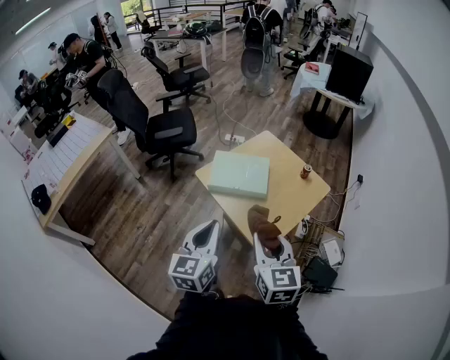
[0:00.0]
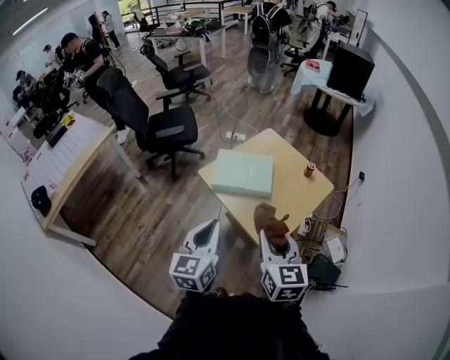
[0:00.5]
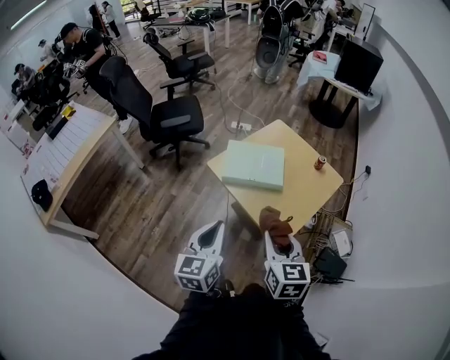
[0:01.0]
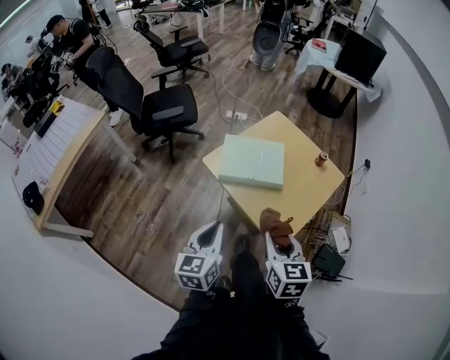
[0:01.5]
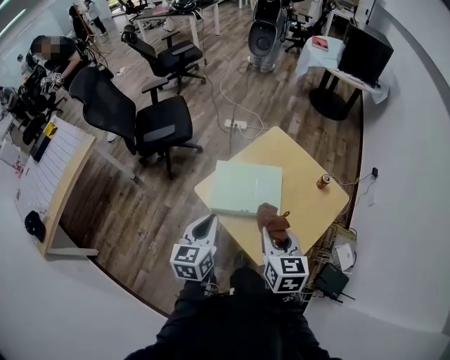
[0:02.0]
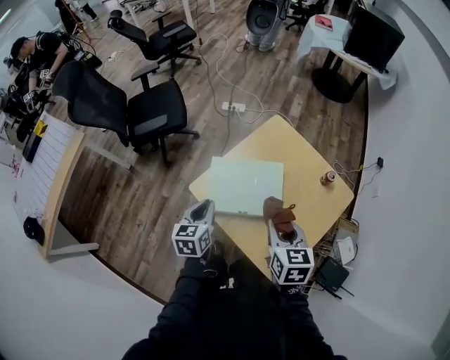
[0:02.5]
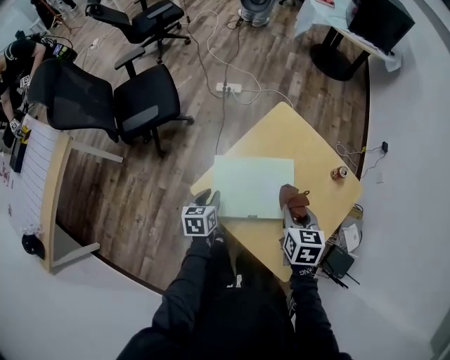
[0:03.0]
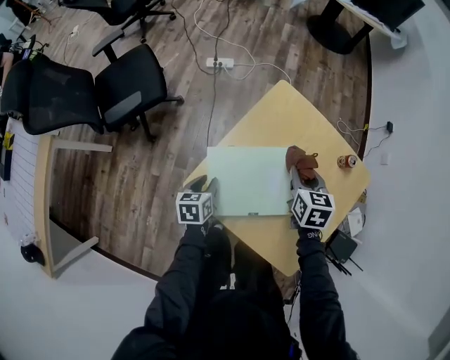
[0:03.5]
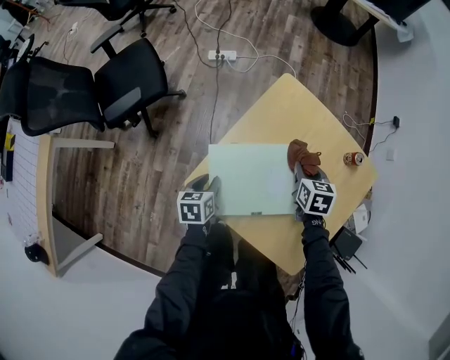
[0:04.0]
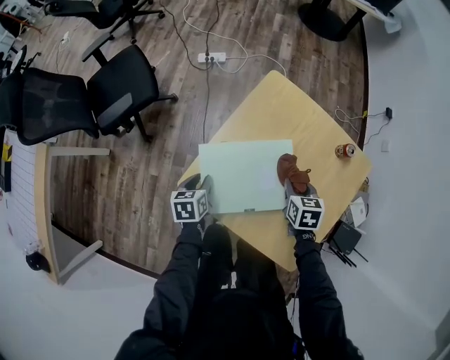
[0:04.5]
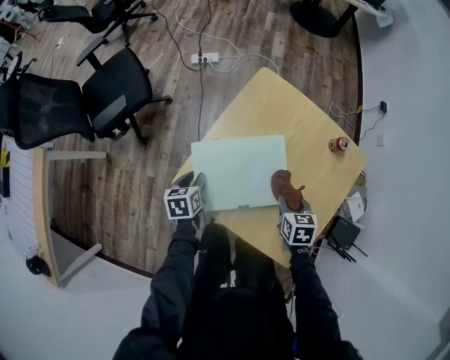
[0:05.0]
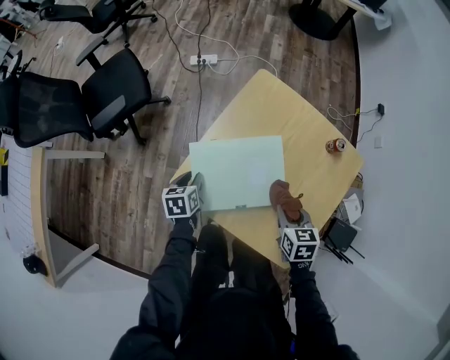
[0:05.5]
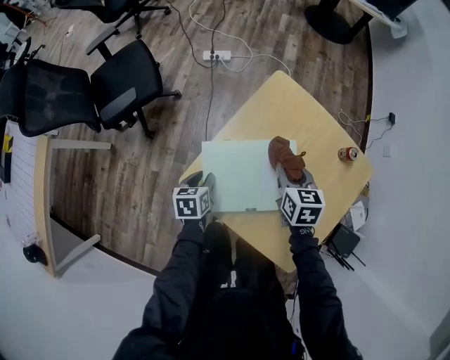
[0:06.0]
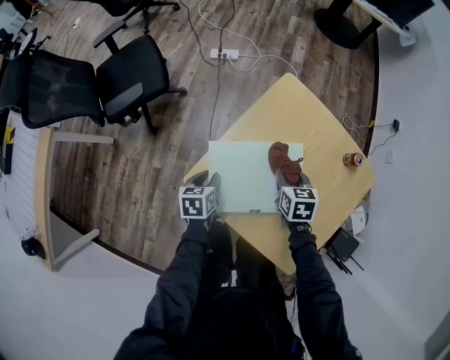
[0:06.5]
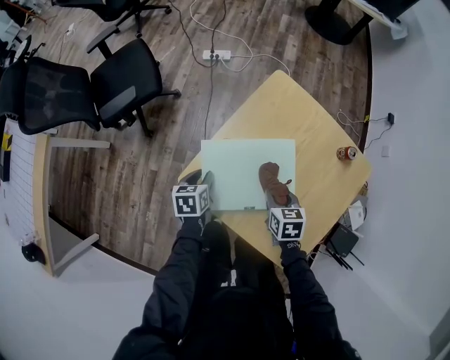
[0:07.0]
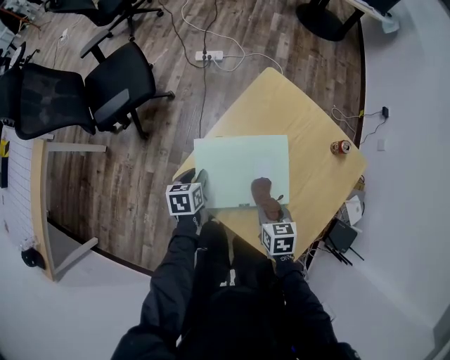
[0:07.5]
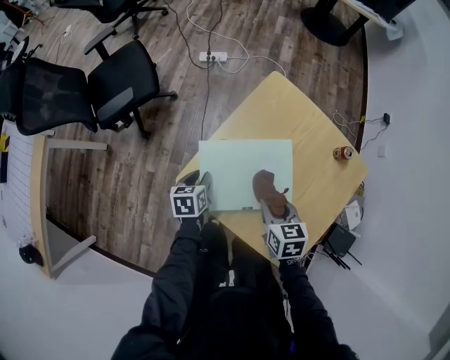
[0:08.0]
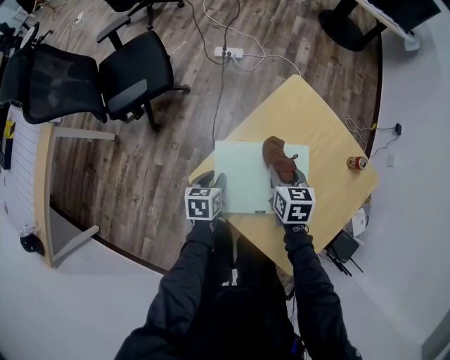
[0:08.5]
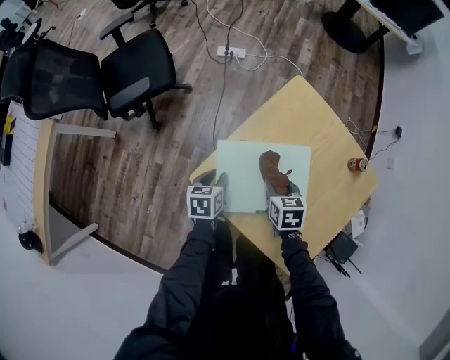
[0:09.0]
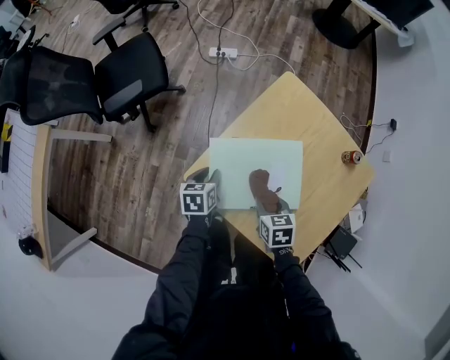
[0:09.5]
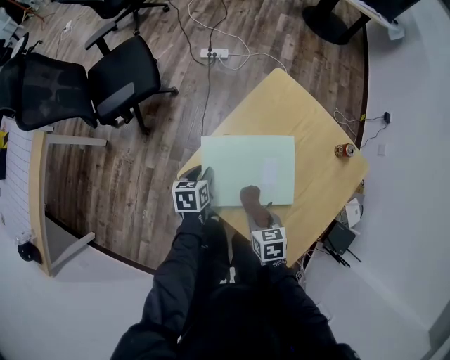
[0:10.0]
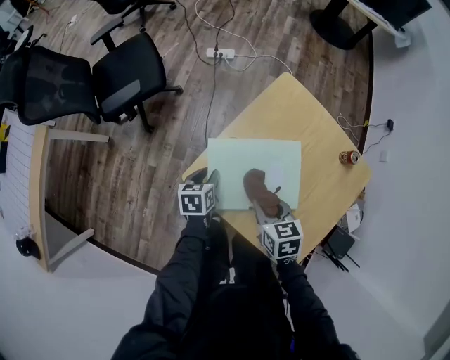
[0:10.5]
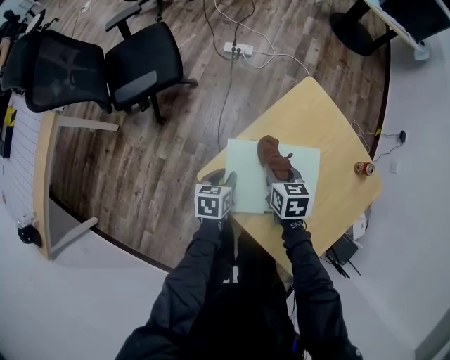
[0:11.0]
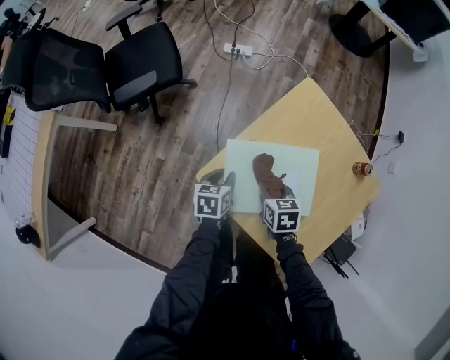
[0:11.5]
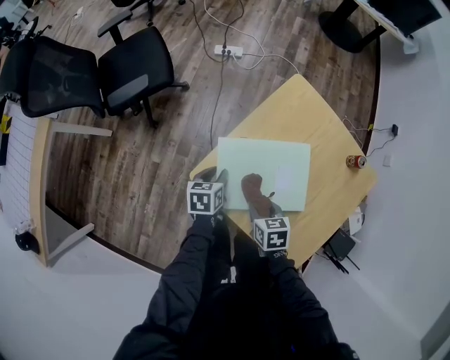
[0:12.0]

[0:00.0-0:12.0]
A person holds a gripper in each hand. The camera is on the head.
0:00.0 to 0:02.0: The grippers both shift forward and downward by some 25 cm.
0:02.0 to 0:04.0: The right gripper shifts roughly 40 cm forward and downward, and rotates some 30 degrees; the left gripper goes some 40 cm downward and forward, tips its fingers downward by about 30 degrees, and opens its fingers.
0:04.0 to 0:06.0: The right gripper is displaced upward by approximately 5 cm, and moves approximately 15 cm backward and comes back.
0:06.0 to 0:08.0: The right gripper is displaced backward by about 10 cm.
0:08.0 to 0:10.0: The right gripper is displaced backward and downward by about 10 cm.
0:10.0 to 0:12.0: The right gripper goes forward and returns, approximately 20 cm each way.

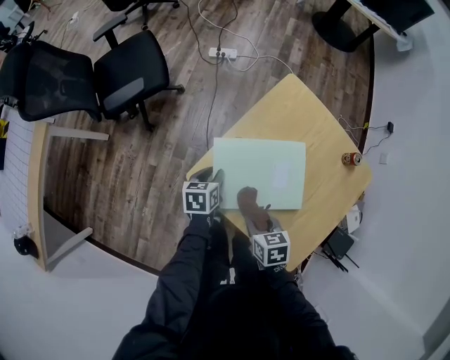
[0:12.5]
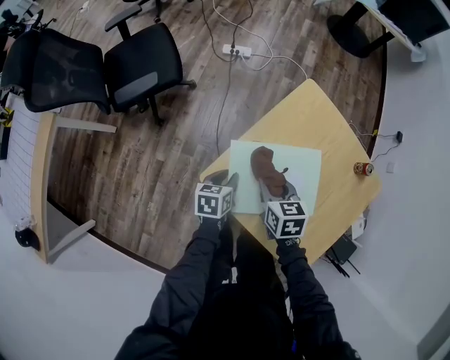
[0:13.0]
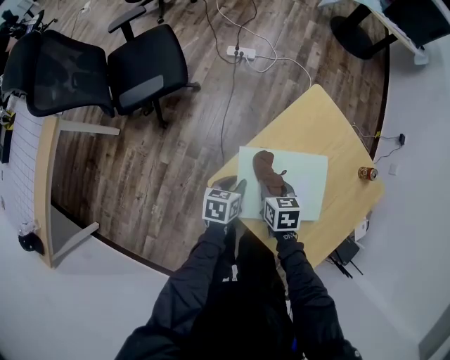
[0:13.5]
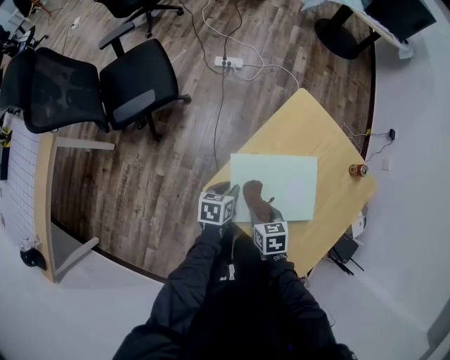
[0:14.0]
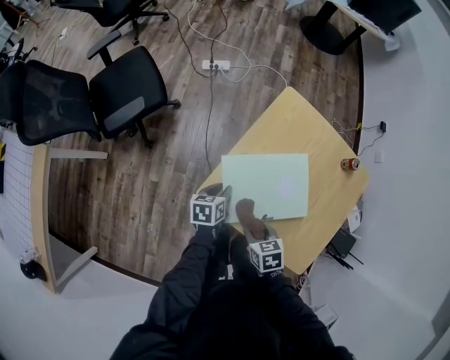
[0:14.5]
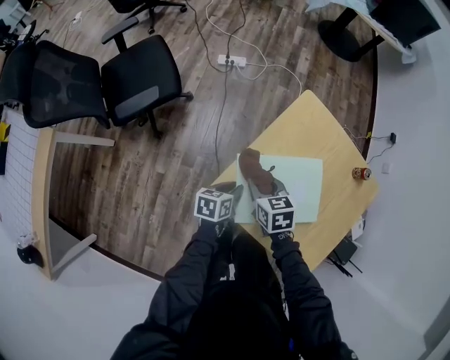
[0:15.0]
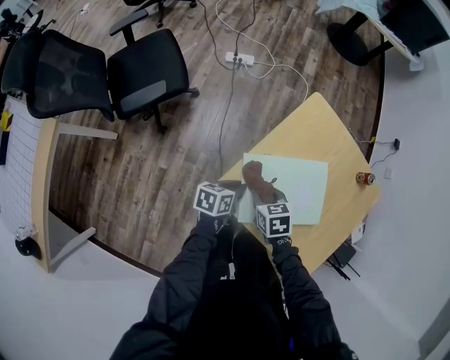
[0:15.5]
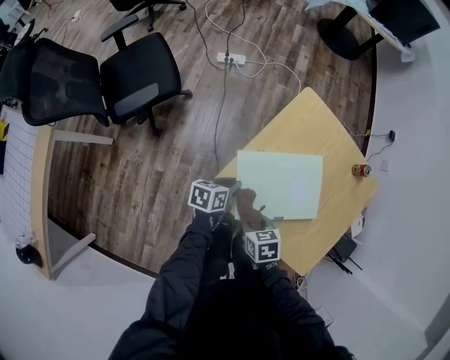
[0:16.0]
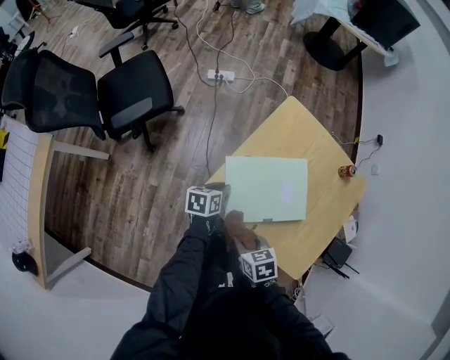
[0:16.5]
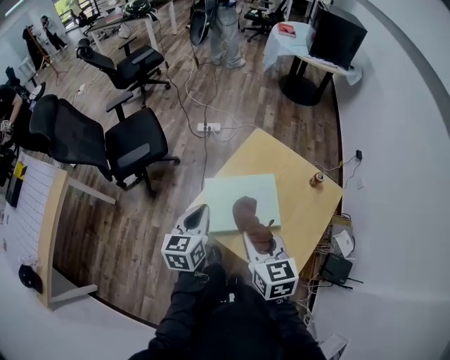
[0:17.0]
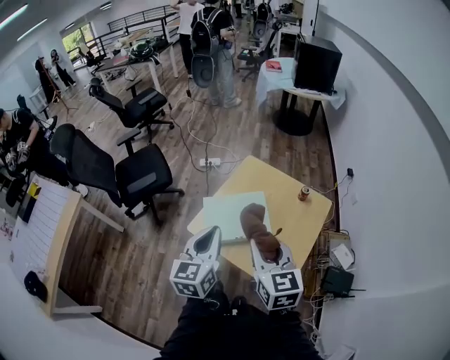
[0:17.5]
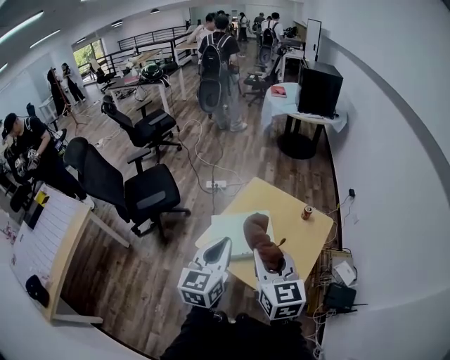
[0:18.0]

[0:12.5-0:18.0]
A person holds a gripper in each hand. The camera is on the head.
0:12.5 to 0:14.5: The right gripper travels forward and back again, roughly 15 cm each way.
0:14.5 to 0:16.0: The right gripper travels to the left by approximately 5 cm, and travels forward and back again, roughly 15 cm each way.
0:16.0 to 0:18.0: The right gripper goes some 40 cm upward, and tilts its fingers roughly 50 degrees upward. Meanwhile the left gripper is displaced upward and backward by some 50 cm, and angles its fingers upward, by approximately 30 degrees.

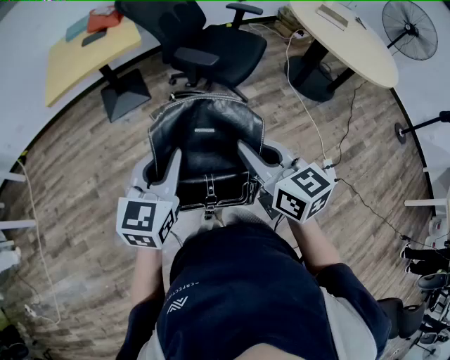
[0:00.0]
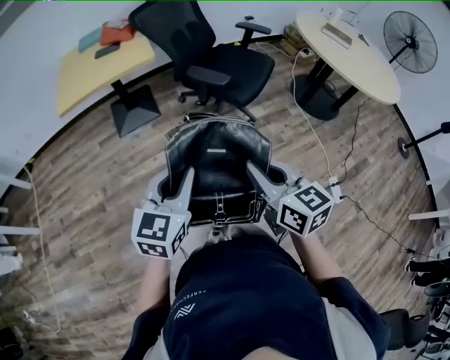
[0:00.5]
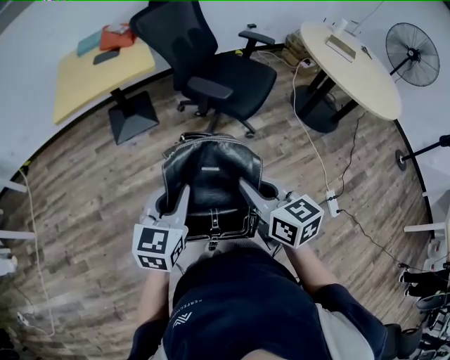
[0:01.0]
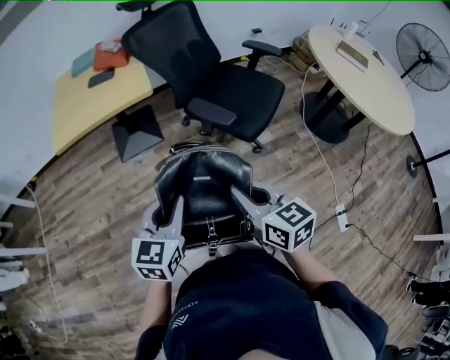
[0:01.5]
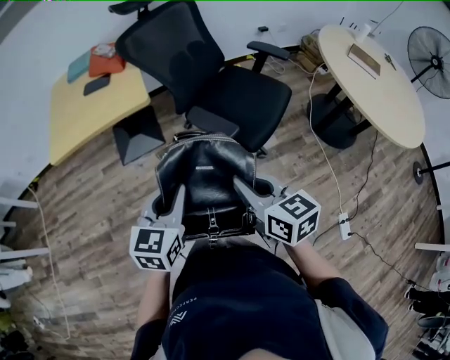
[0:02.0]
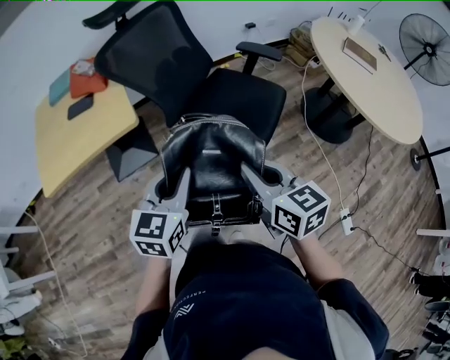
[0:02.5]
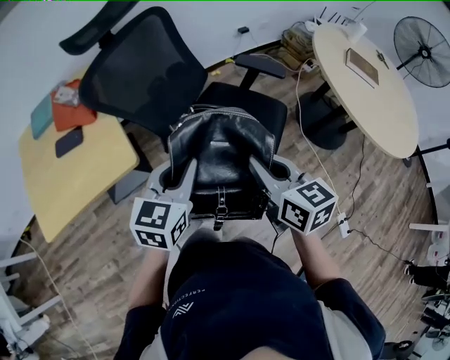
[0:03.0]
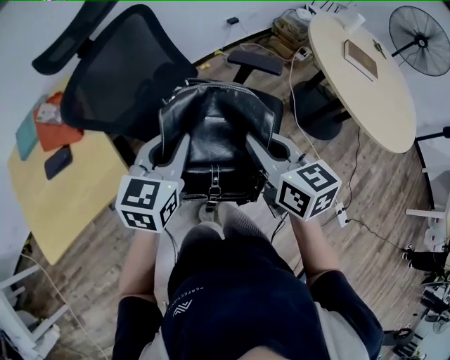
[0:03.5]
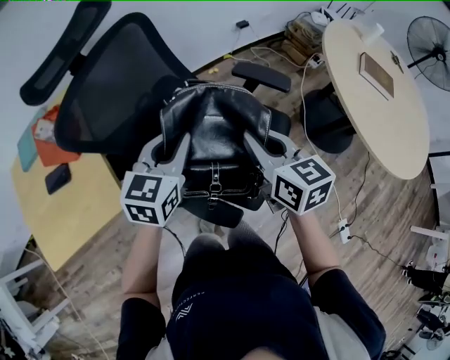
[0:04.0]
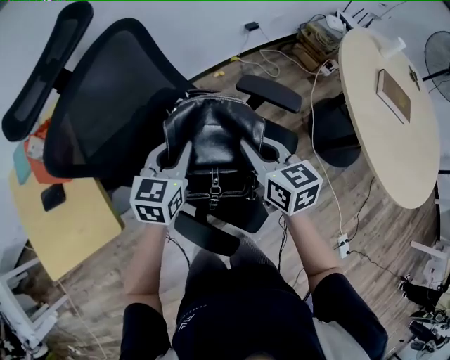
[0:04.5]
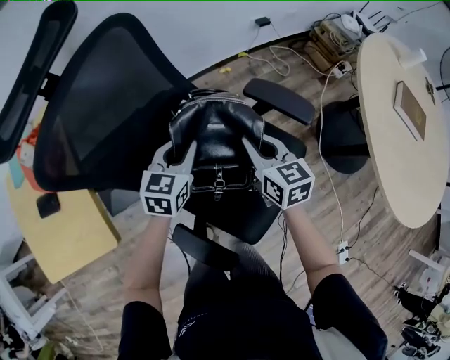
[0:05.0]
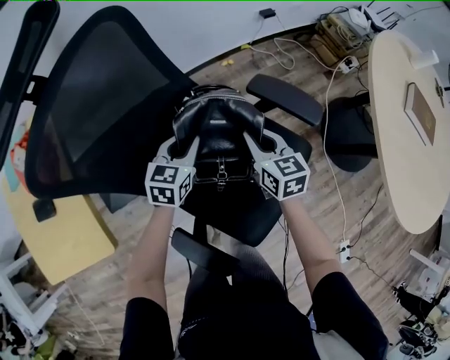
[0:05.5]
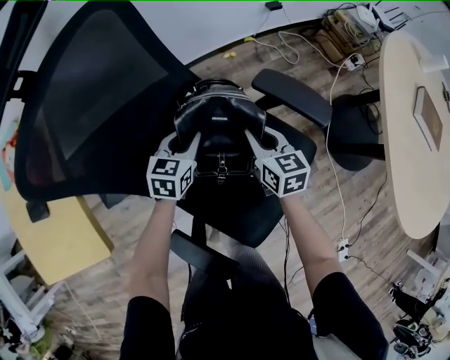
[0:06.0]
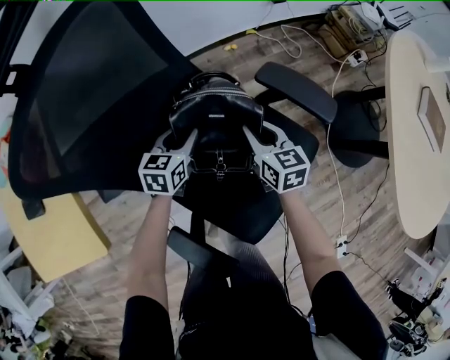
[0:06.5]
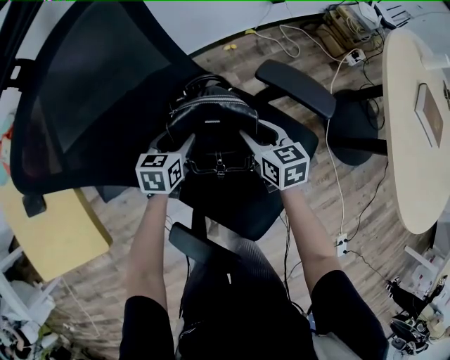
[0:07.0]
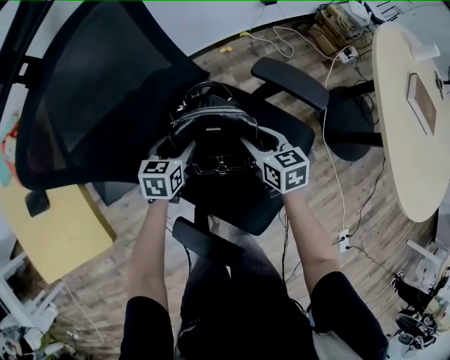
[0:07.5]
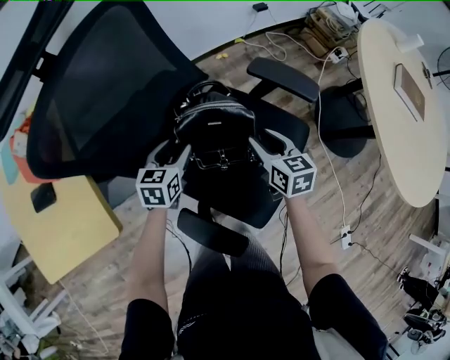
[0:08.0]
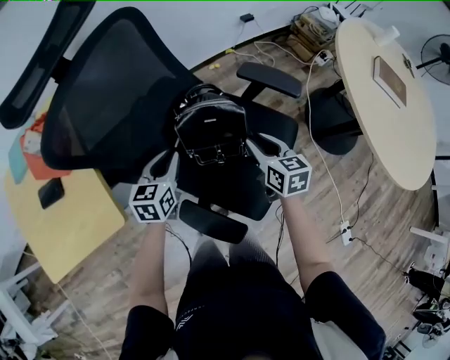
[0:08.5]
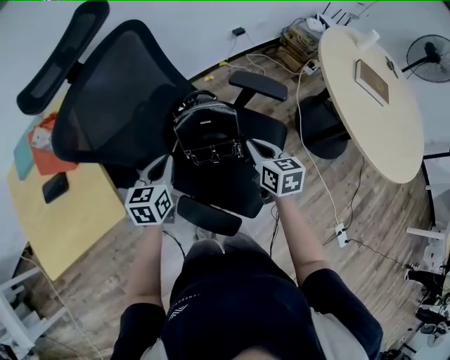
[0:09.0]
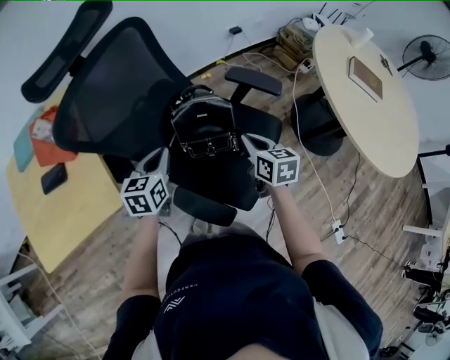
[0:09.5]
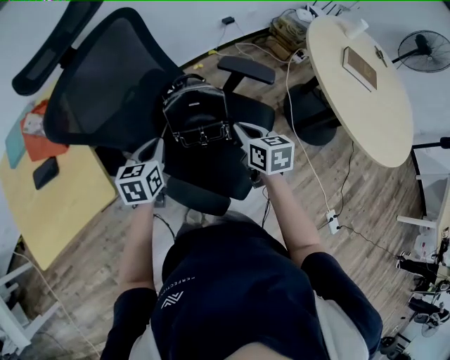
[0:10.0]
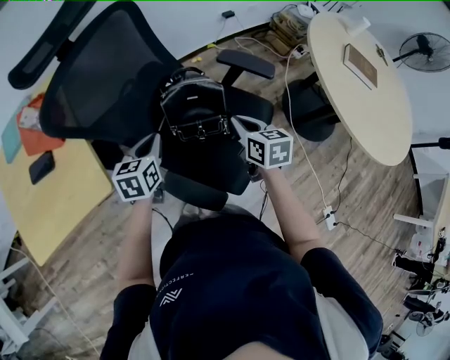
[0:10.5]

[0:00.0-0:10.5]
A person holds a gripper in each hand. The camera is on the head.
0:00.0 to 0:02.0: Both grippers travel together forward, some 25 cm.
0:02.0 to 0:04.0: The pair of grippers is taken forward, some 50 cm.
0:04.0 to 0:06.5: Both grippers move downward and forward, roughly 35 cm. The left gripper rotates about 20 degrees.
0:06.5 to 0:08.5: The left gripper is displaced backward, upward and to the left by roughly 20 cm, and opens and closes again. The right gripper heads backward and upward, covering roughly 15 cm.
0:08.5 to 0:10.5: The right gripper heads upward, covering approximately 5 cm, and closes. The left gripper shifts by about 5 cm.
